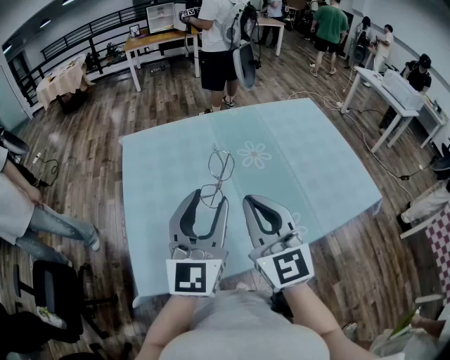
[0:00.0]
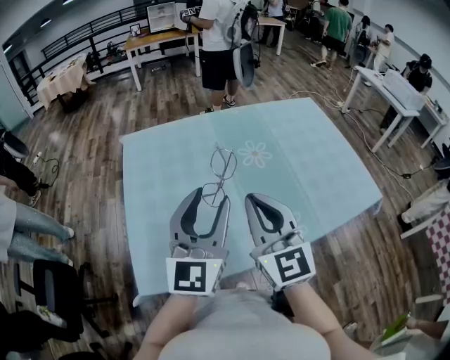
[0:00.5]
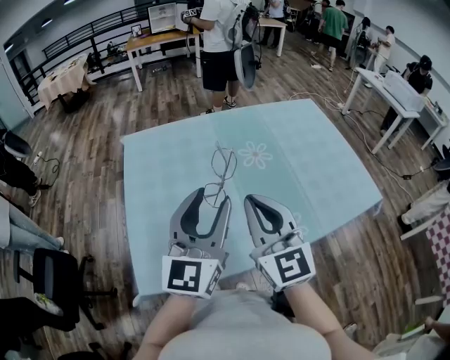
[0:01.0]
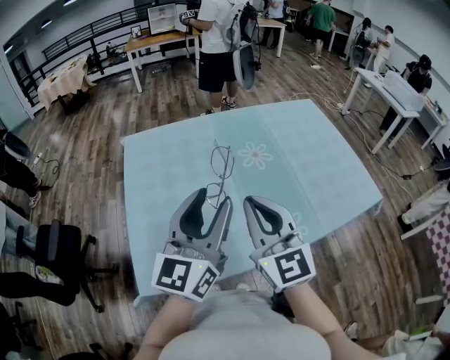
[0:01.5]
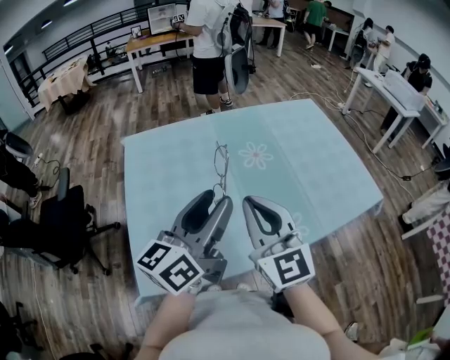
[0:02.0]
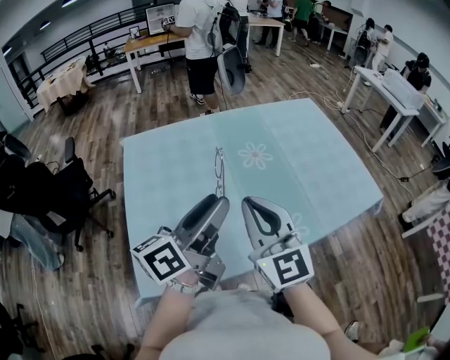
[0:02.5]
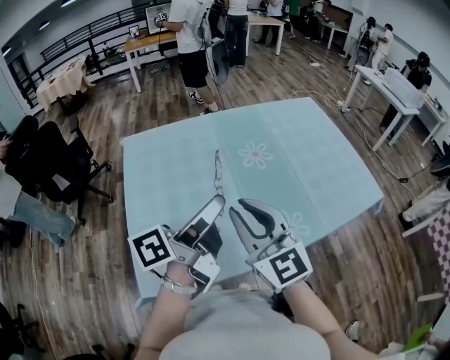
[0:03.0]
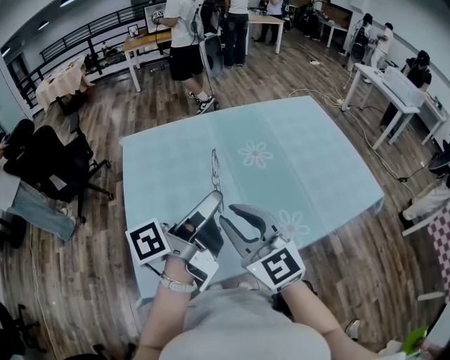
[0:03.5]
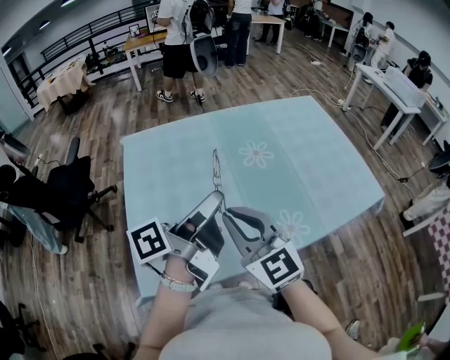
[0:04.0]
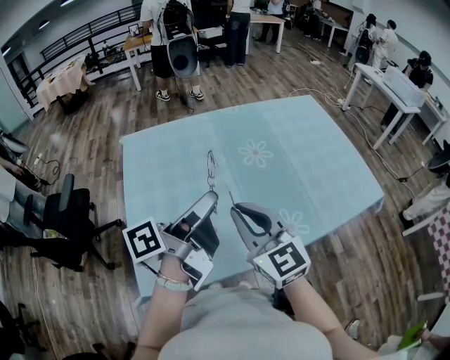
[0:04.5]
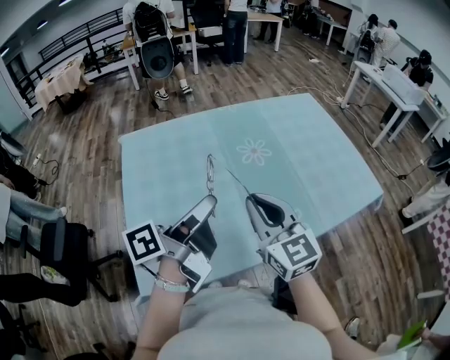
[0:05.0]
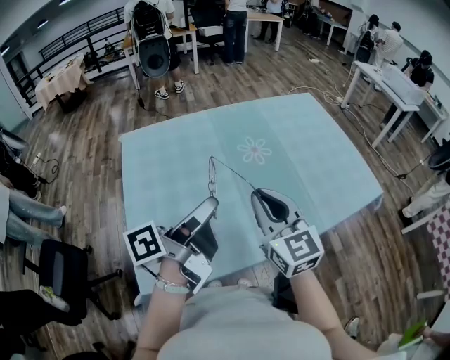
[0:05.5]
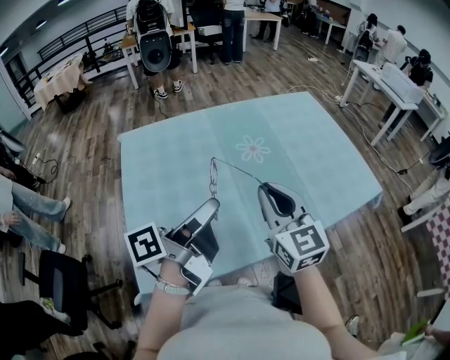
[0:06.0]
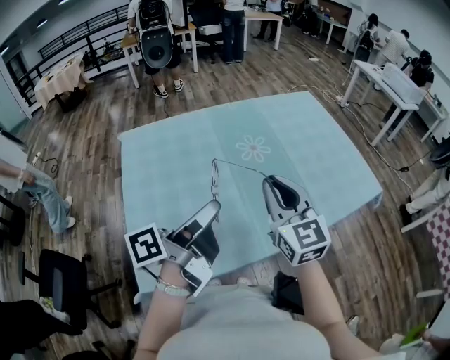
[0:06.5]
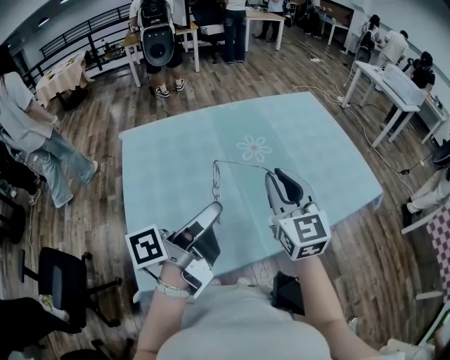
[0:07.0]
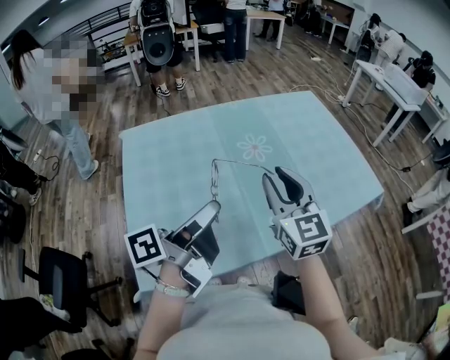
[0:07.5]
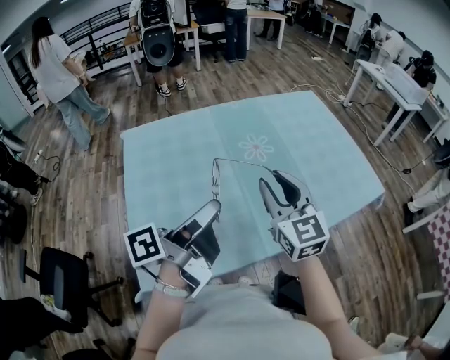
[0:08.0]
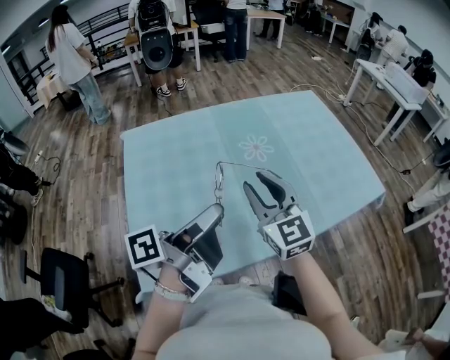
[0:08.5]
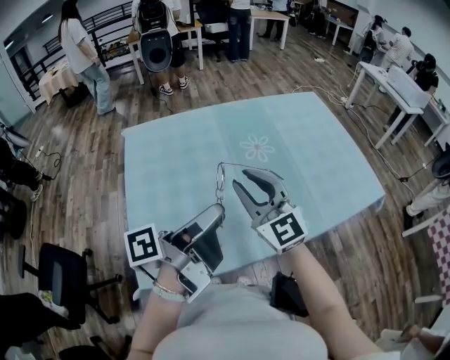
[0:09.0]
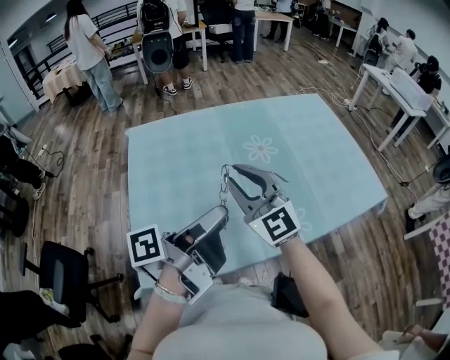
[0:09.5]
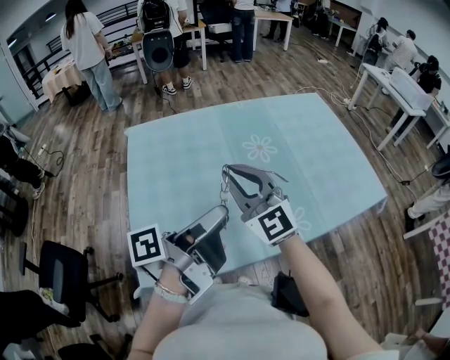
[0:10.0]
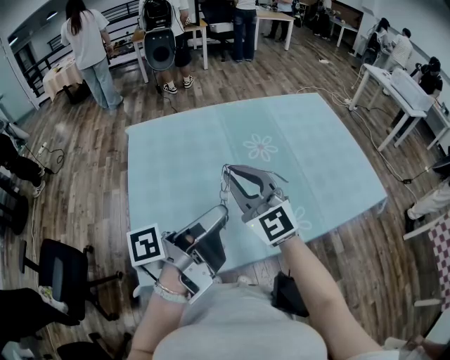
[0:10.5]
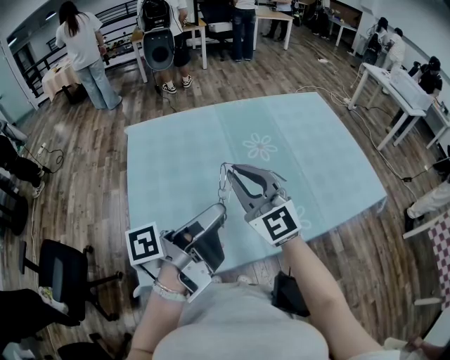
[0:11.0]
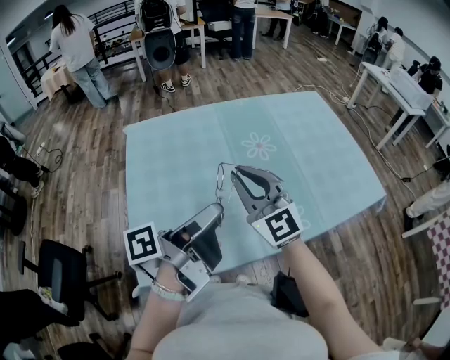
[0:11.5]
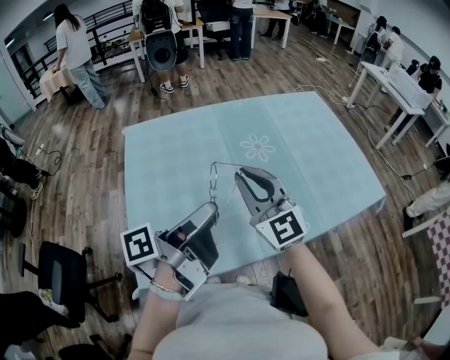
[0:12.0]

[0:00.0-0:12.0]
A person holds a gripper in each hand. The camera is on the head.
0:02.0 to 0:04.0: The right gripper shifts by some 5 cm.
0:04.0 to 0:06.0: The right gripper moves some 10 cm.
0:06.0 to 0:08.0: The right gripper opens its fingers.
0:08.0 to 0:10.0: The right gripper moves approximately 10 cm, changes its angle by roughly 30 degrees, and closes.

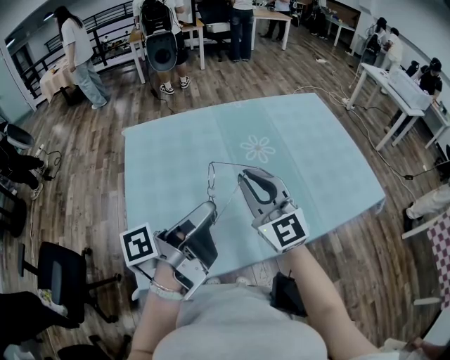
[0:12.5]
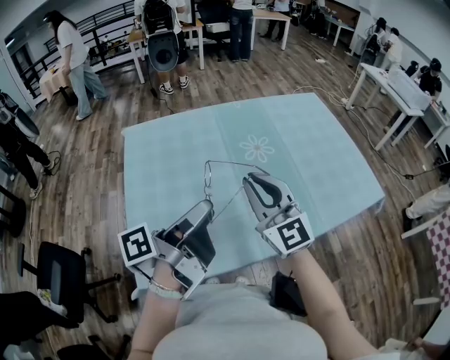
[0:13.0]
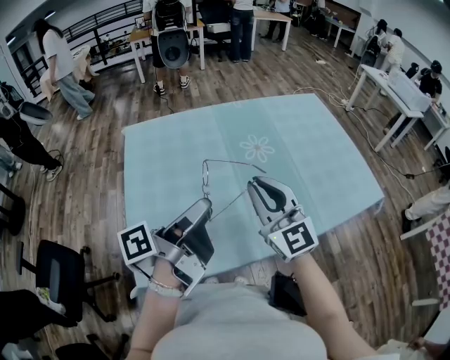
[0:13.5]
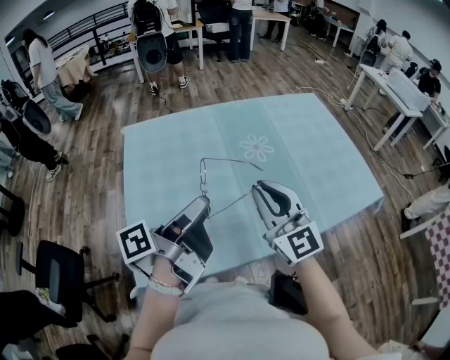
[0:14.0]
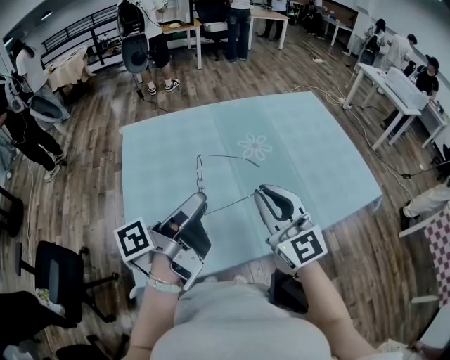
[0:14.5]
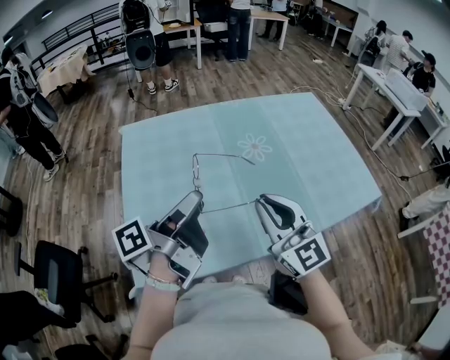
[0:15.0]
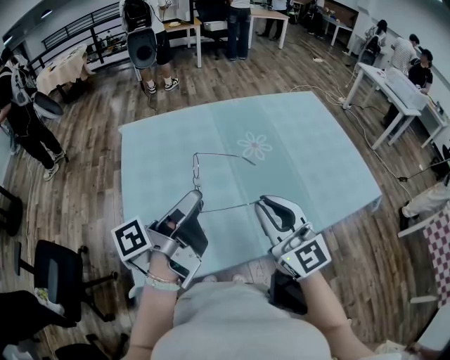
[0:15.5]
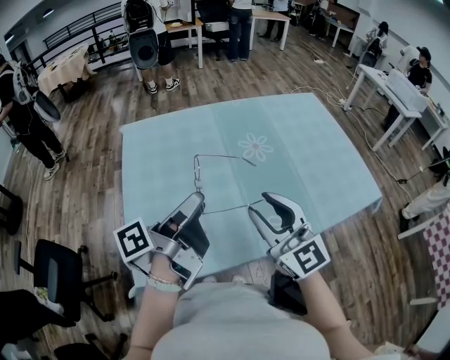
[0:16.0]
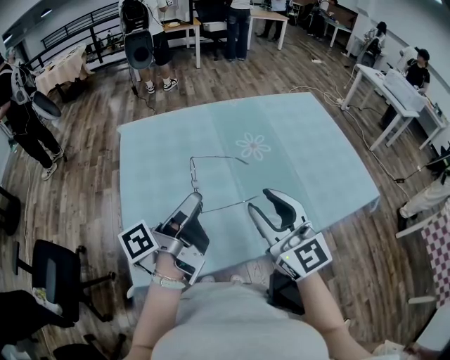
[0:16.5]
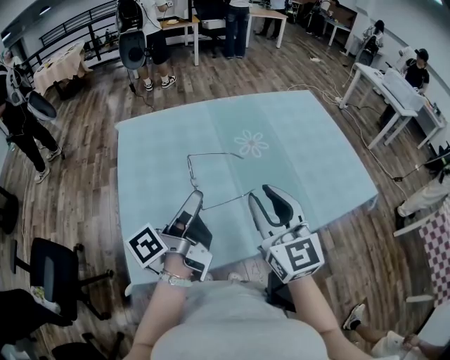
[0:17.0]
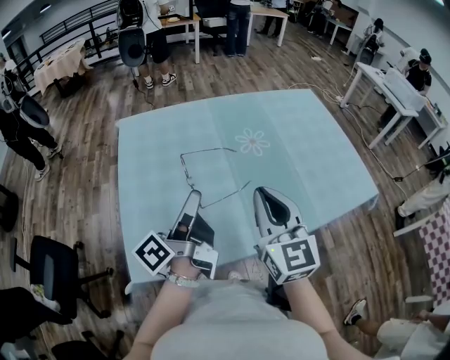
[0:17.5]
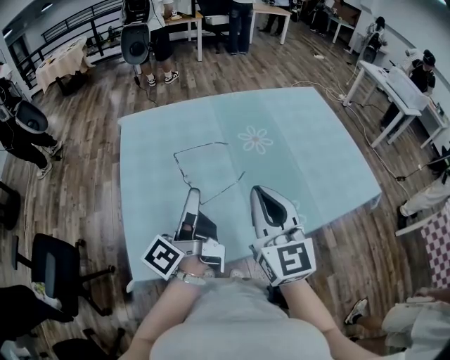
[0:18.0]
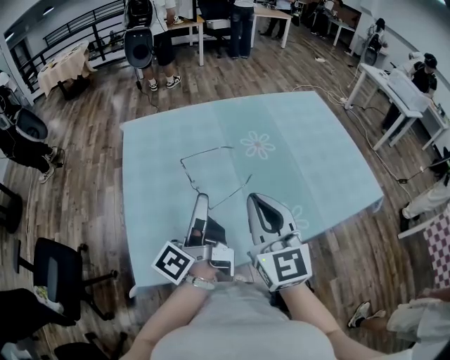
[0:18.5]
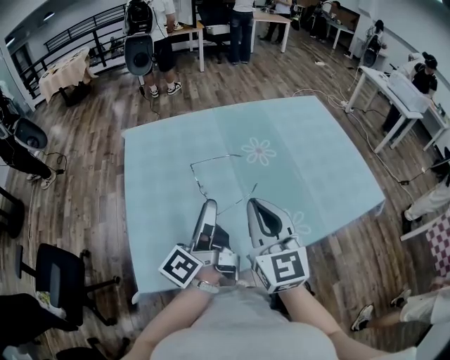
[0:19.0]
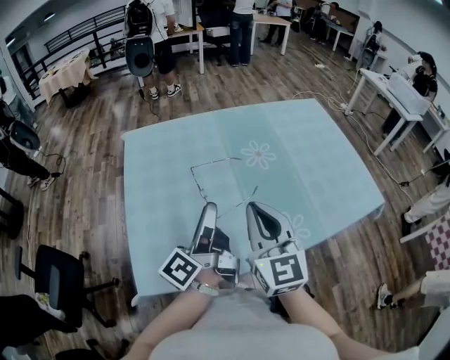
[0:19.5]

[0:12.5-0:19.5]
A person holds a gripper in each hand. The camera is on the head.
0:12.5 to 0:14.5: The right gripper changes place by roughly 5 cm.
0:14.5 to 0:16.0: The right gripper opens.
0:16.0 to 0:17.5: The right gripper closes its fingers.

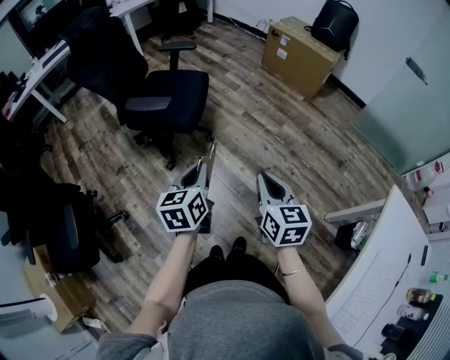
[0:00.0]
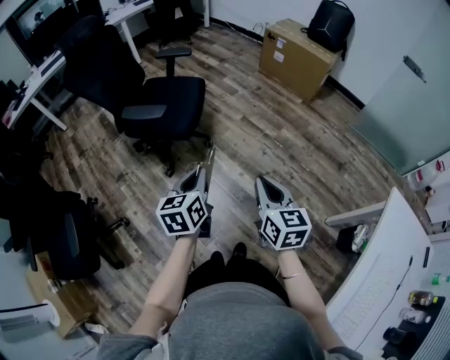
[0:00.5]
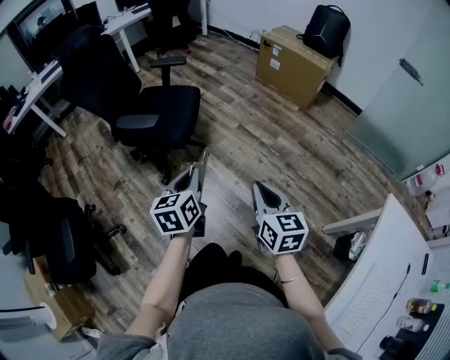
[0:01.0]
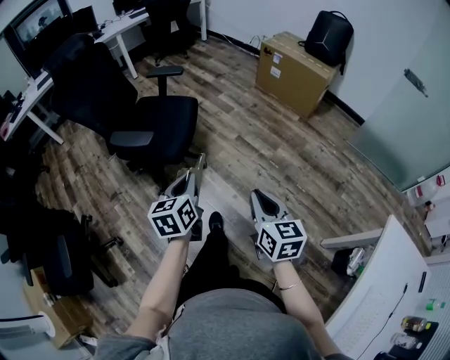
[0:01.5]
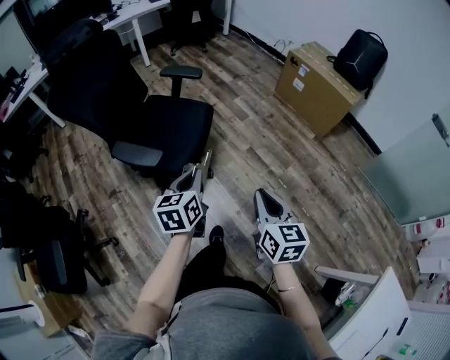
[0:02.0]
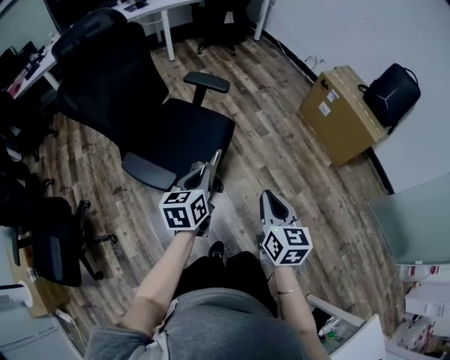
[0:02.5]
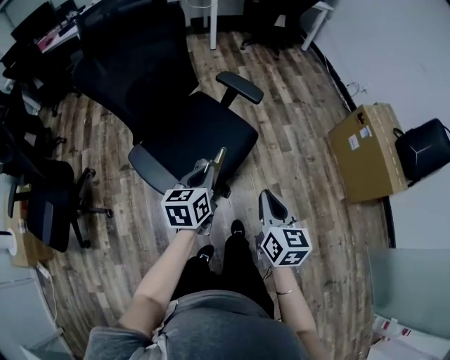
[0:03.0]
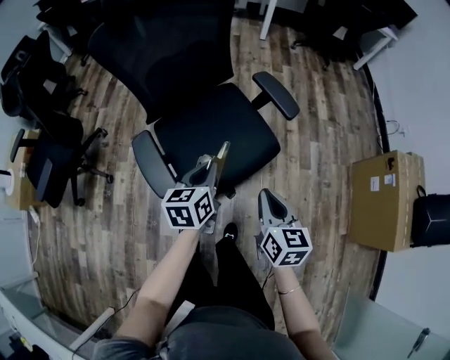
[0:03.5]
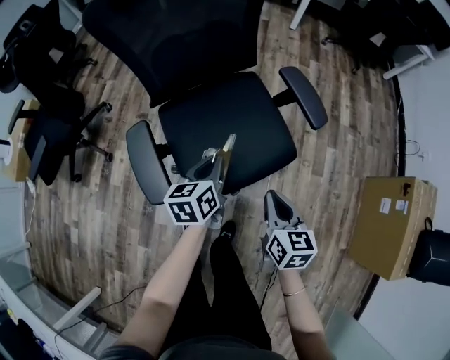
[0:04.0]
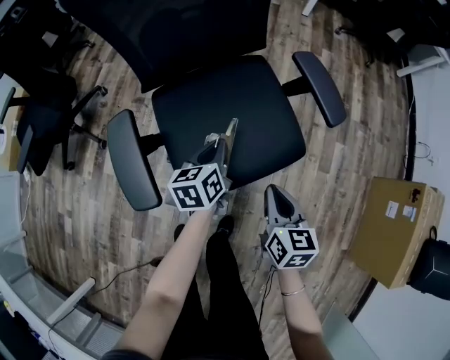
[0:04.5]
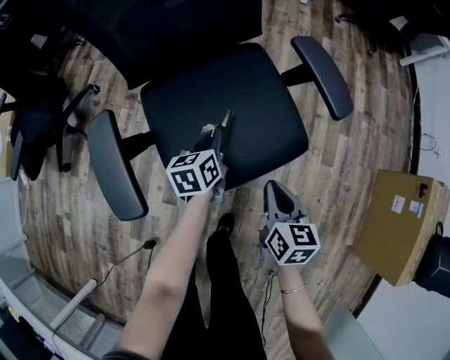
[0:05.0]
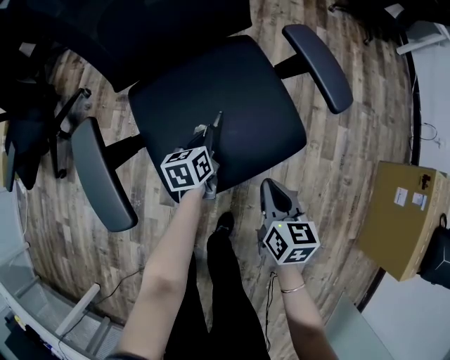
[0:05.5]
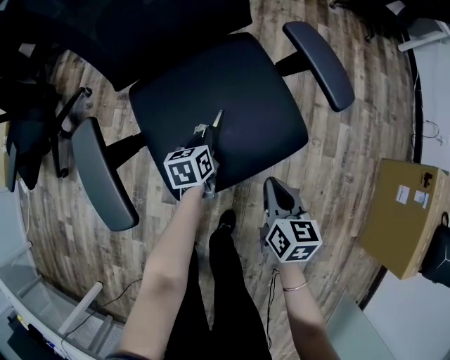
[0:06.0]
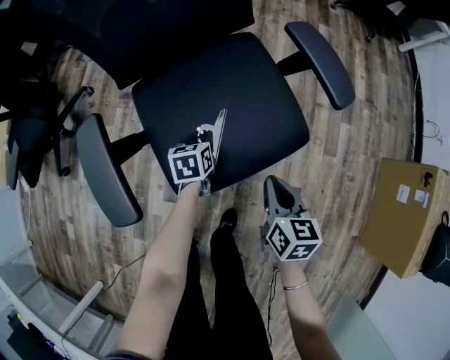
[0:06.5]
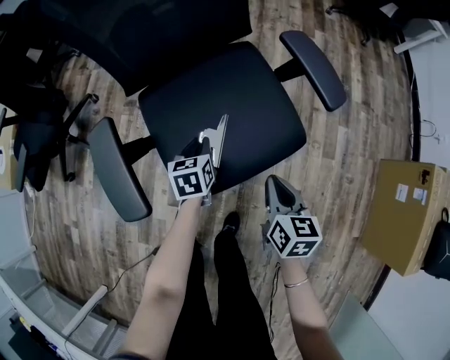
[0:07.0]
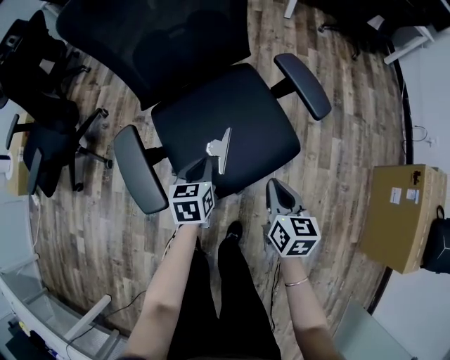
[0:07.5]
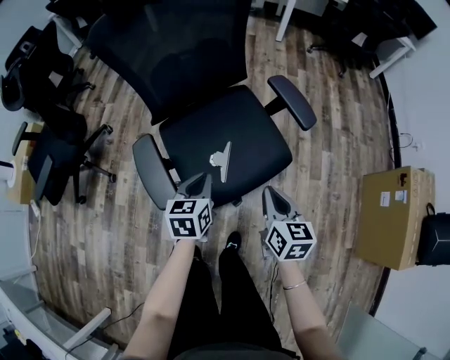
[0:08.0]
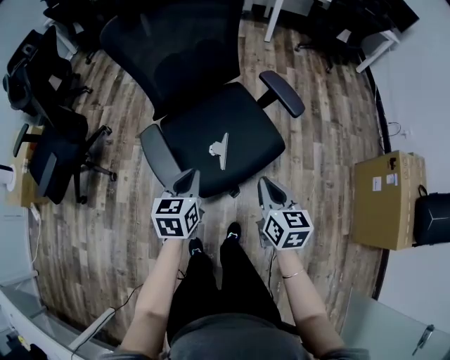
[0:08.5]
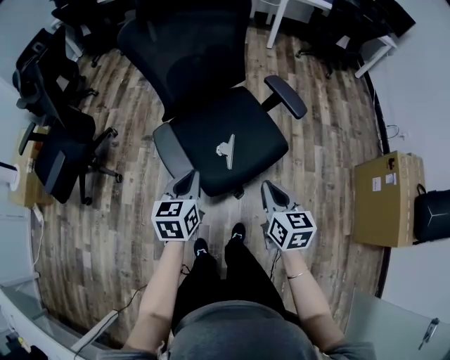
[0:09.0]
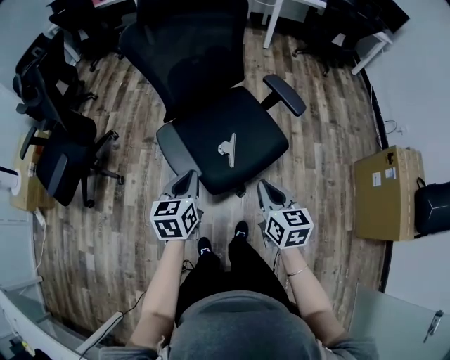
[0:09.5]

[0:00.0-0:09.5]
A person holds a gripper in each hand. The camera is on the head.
0:00.0 to 0:02.0: Both grippers move forward, roughly 25 cm.
0:02.0 to 0:04.0: The left gripper shifts by some 35 cm, and turns by approximately 50 degrees; the right gripper moves roughly 40 cm, and rotates roughly 50 degrees.
0:04.0 to 0:05.5: The right gripper goes roughly 15 cm downward, while the left gripper moves downward, approximately 20 cm.
0:05.5 to 0:07.5: The right gripper shifts about 10 cm upward, while the left gripper shifts roughly 15 cm upward and backward, and opens and closes again.
0:07.5 to 0:09.5: Both grippers travel together upward, backward and to the left, roughly 20 cm.
